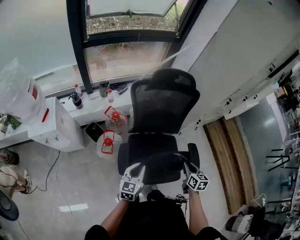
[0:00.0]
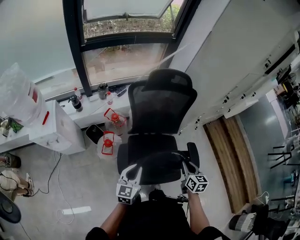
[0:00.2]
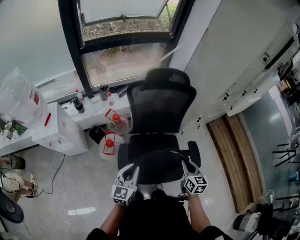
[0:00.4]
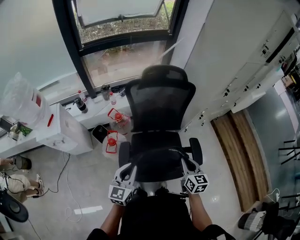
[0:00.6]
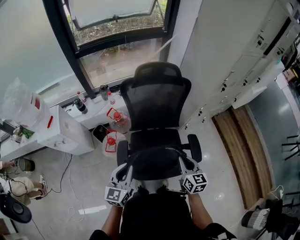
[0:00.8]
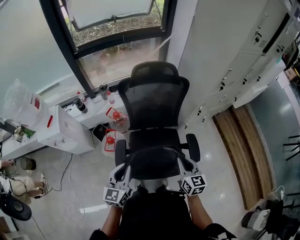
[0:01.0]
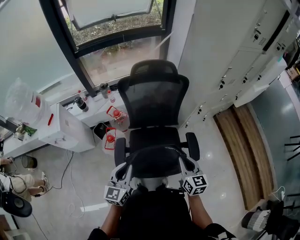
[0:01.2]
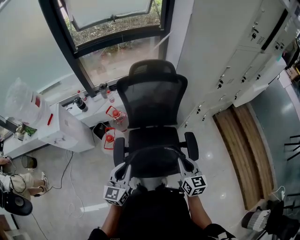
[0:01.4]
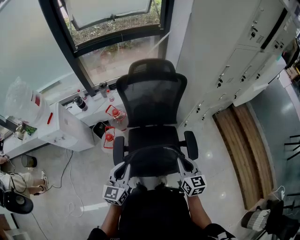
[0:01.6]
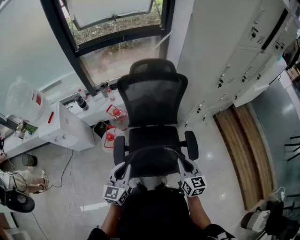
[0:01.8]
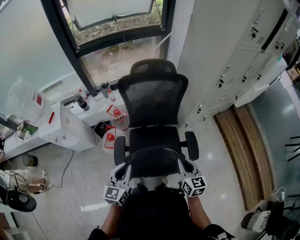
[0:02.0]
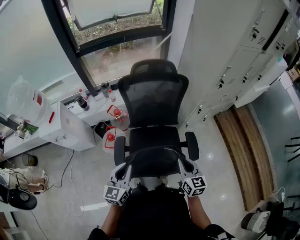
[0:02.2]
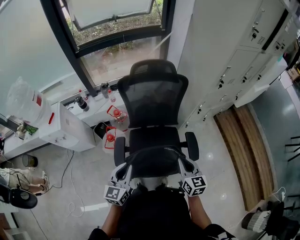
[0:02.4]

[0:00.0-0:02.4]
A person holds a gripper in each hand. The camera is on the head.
0:00.0 to 0:01.2: The grippers both shift upward by about 10 cm.
0:01.2 to 0:02.4: The grippers stay close to where they were, moving slightly.

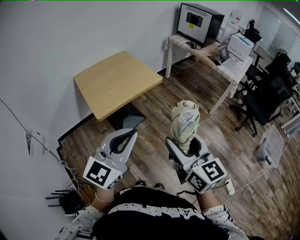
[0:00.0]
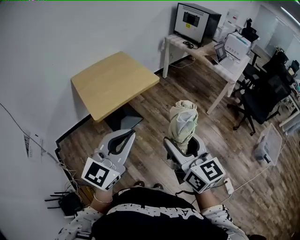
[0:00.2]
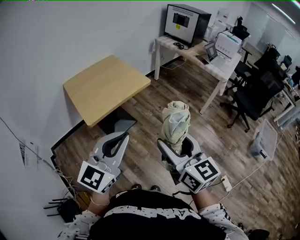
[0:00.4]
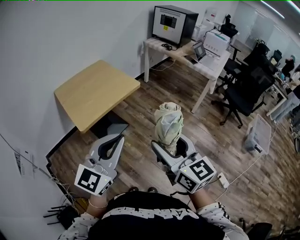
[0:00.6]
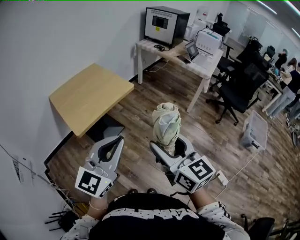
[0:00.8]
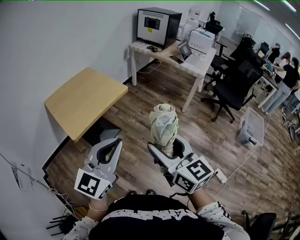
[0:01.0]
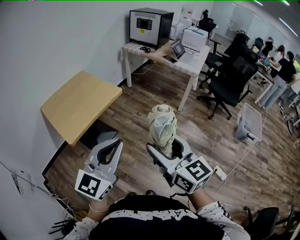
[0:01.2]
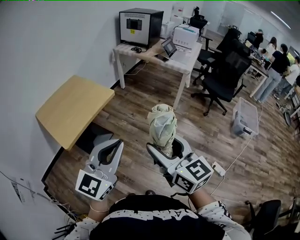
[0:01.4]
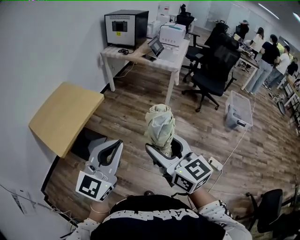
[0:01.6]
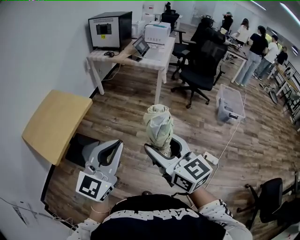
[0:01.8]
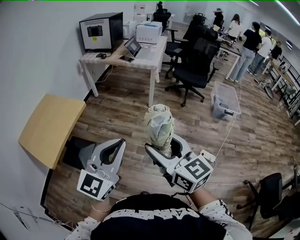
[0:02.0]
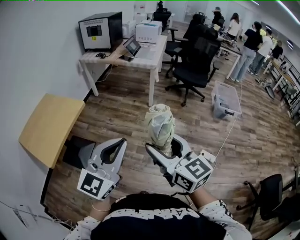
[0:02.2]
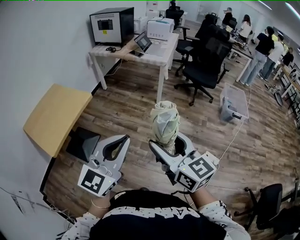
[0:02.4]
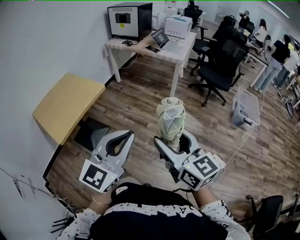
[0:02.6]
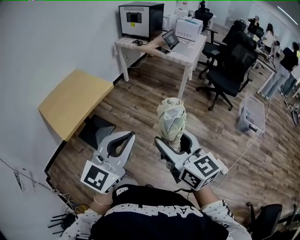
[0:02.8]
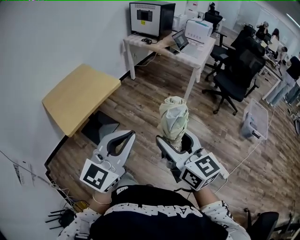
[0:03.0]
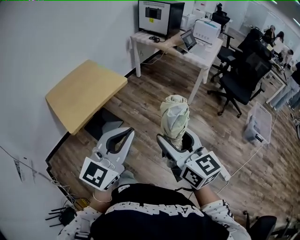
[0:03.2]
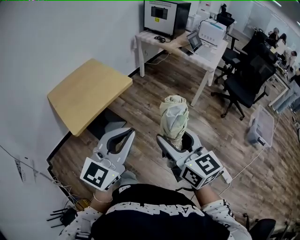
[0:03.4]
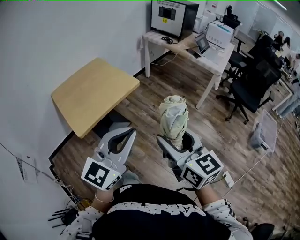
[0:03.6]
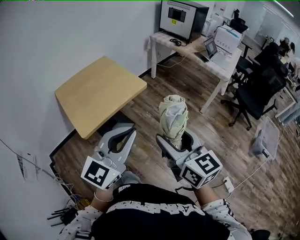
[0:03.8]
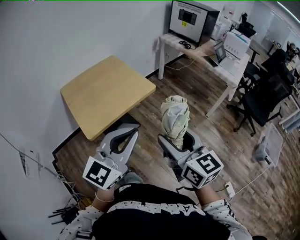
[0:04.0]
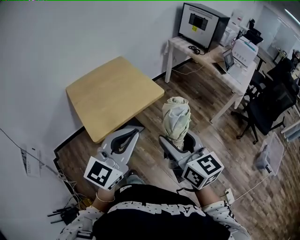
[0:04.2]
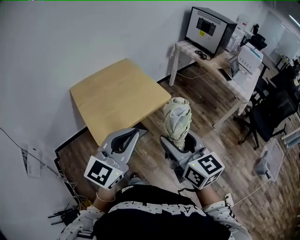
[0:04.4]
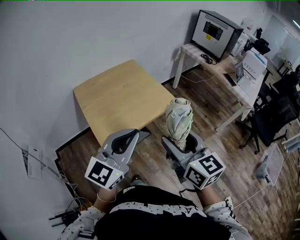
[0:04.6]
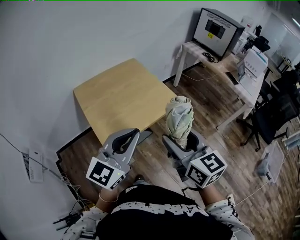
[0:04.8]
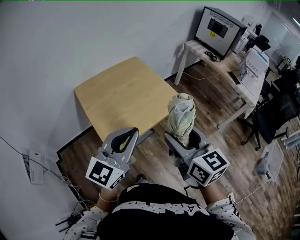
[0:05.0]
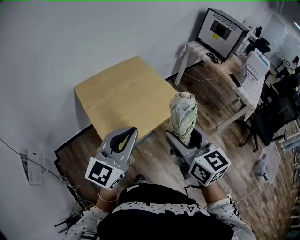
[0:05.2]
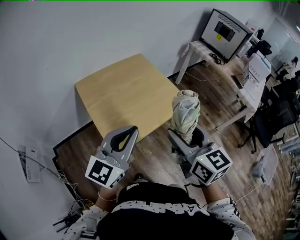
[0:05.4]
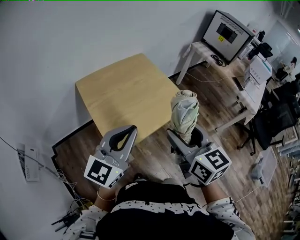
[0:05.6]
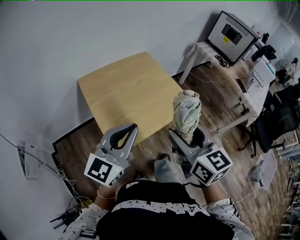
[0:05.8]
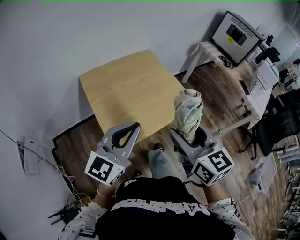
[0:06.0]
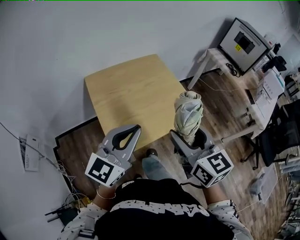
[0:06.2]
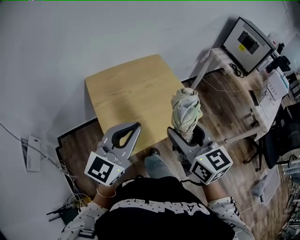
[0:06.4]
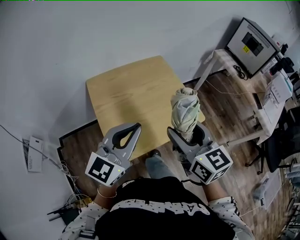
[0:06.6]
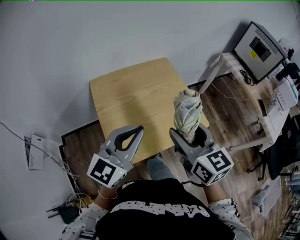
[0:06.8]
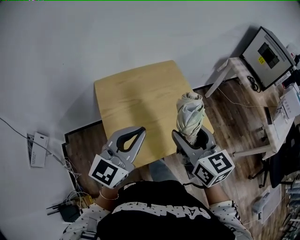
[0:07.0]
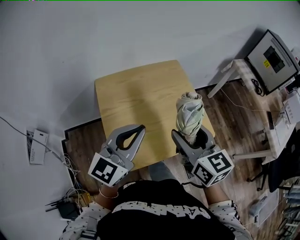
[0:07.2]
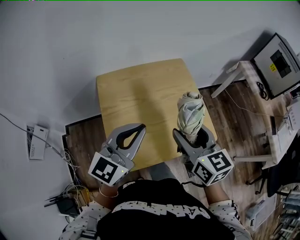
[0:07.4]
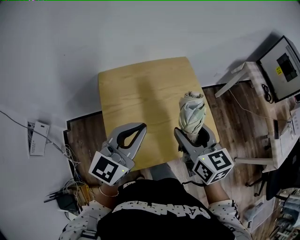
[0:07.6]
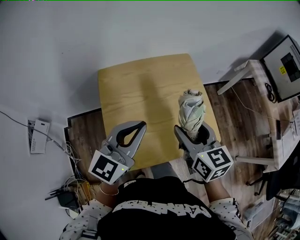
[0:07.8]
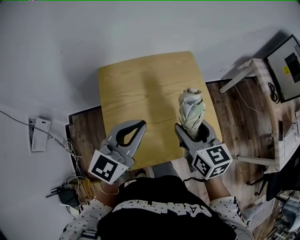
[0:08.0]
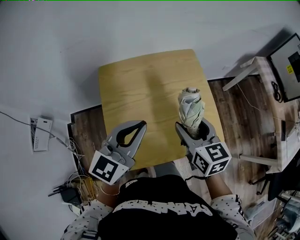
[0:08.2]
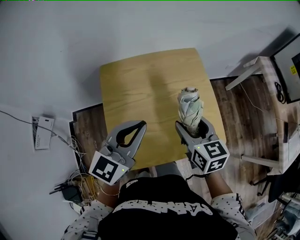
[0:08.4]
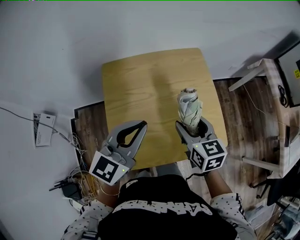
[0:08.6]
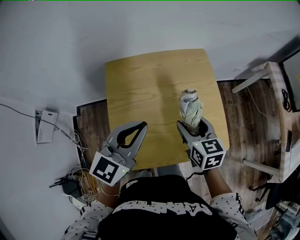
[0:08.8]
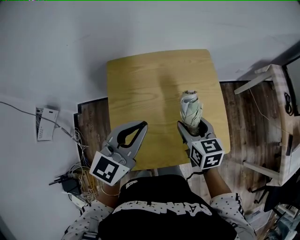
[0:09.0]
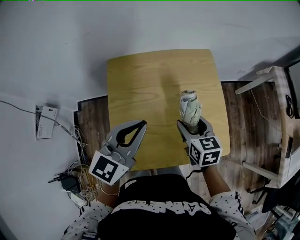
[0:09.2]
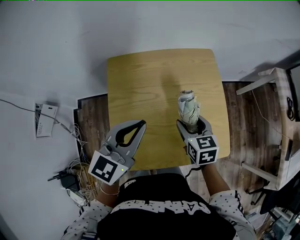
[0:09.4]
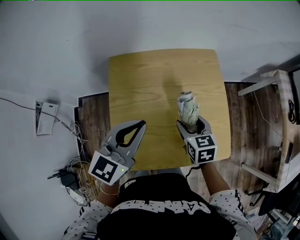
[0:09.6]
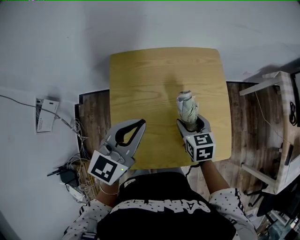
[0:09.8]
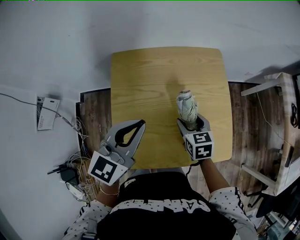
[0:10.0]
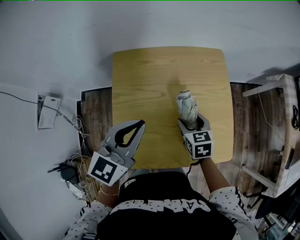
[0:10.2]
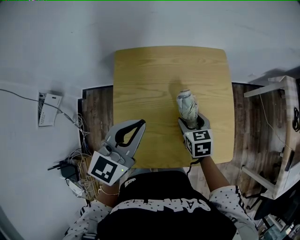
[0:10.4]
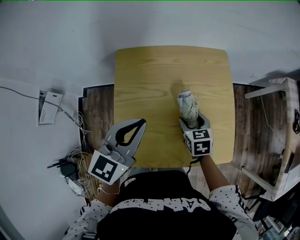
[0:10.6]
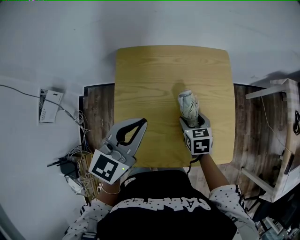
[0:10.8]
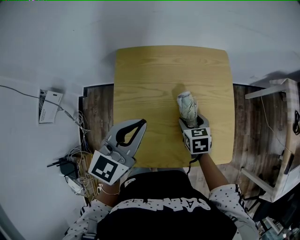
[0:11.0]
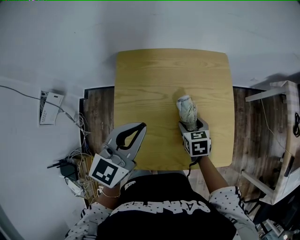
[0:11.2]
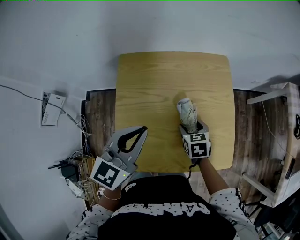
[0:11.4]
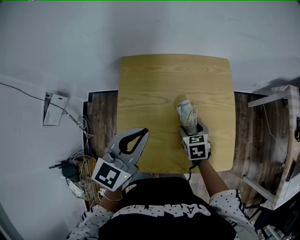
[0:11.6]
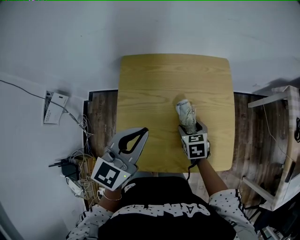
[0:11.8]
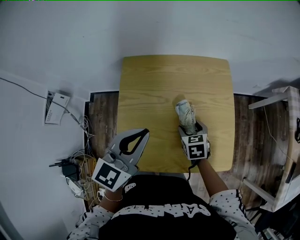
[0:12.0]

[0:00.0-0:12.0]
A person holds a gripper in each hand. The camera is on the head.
0:00.0 to 0:01.6: The two grippers go approximately 10 cm to the right.
0:01.6 to 0:03.0: The right gripper travels to the right and back again, roughly 10 cm each way.
0:03.0 to 0:04.4: The grippers both shift to the left and forward by approximately 30 cm.
0:04.4 to 0:06.0: Both grippers travel together to the left and forward, some 20 cm.
0:06.0 to 0:07.6: Both grippers travel together forward, about 20 cm.
0:07.6 to 0:09.0: The right gripper moves downward and forward, some 15 cm, while the left gripper moves about 5 cm.
0:09.0 to 0:10.4: The right gripper moves downward, some 10 cm.
0:10.4 to 0:12.0: The grippers make only small movements.

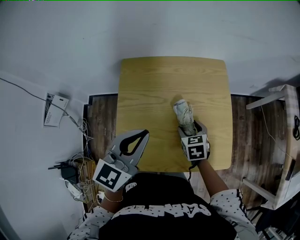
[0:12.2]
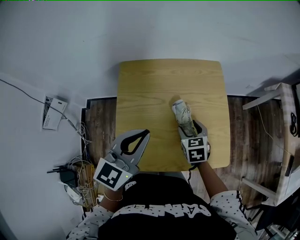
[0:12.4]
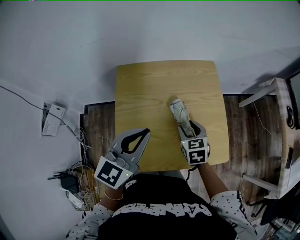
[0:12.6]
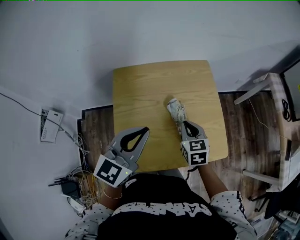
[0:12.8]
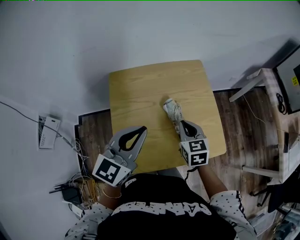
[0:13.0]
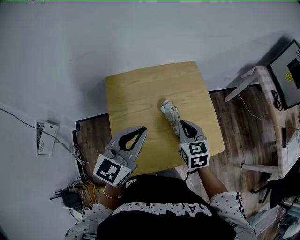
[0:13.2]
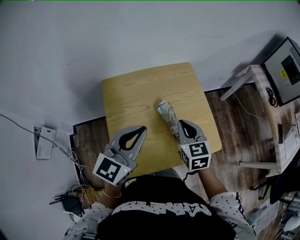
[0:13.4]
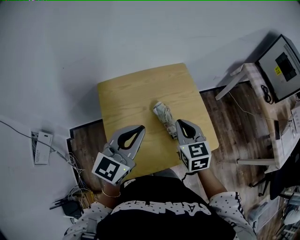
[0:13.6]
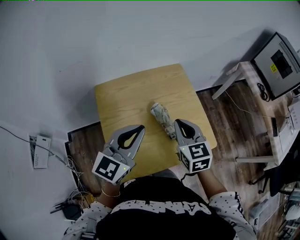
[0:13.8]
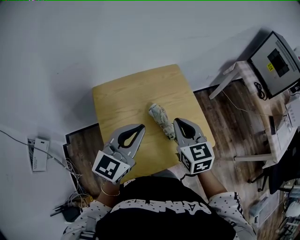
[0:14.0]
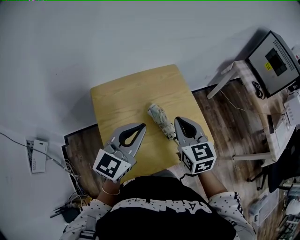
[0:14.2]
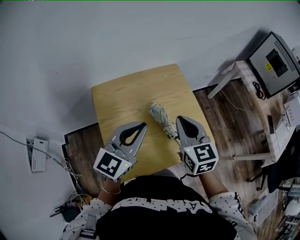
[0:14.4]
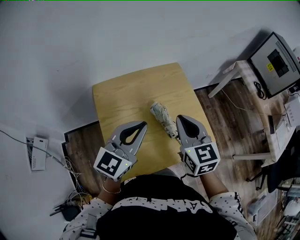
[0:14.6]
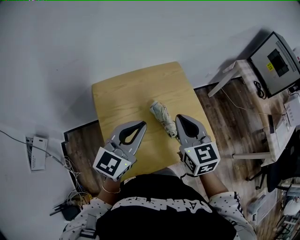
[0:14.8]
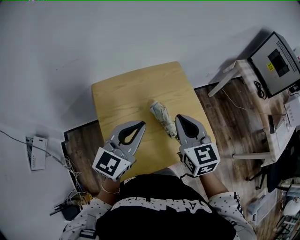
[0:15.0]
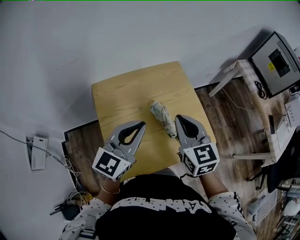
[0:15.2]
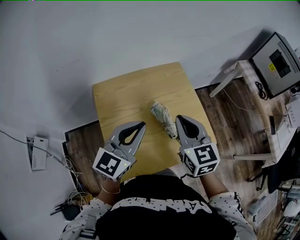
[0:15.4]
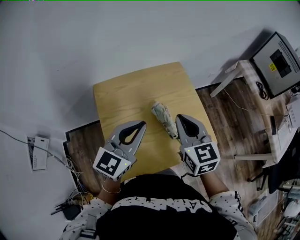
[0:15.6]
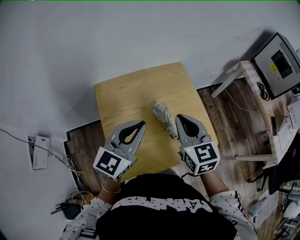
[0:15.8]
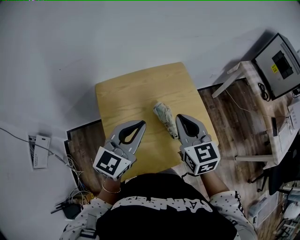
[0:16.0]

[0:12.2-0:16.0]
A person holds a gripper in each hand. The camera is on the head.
0:12.2 to 0:13.4: The right gripper is displaced upward by about 15 cm, swivels about 30 degrees, and closes its fingers.
0:13.4 to 0:14.8: The right gripper shifts some 10 cm upward.
0:14.8 to 0:16.0: The grippers make only small movements.

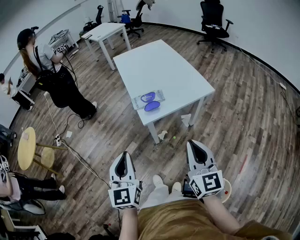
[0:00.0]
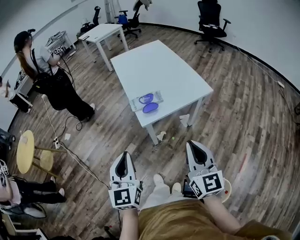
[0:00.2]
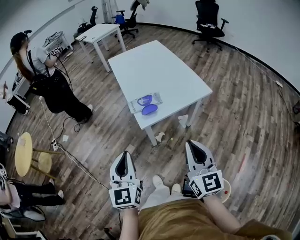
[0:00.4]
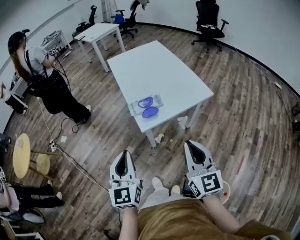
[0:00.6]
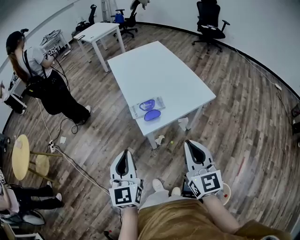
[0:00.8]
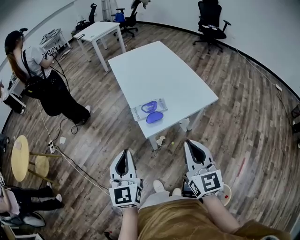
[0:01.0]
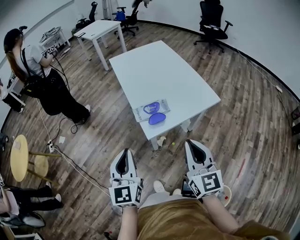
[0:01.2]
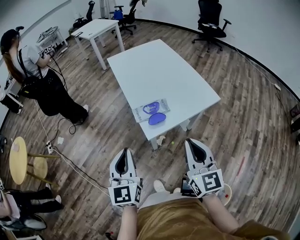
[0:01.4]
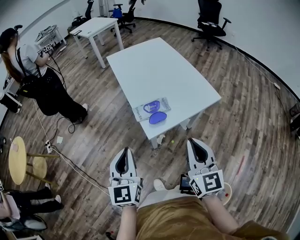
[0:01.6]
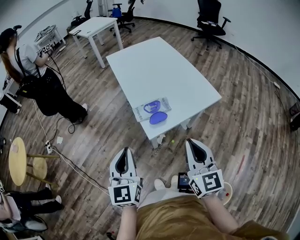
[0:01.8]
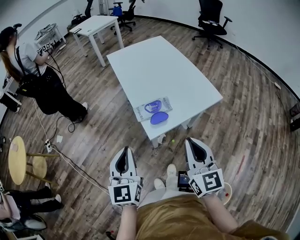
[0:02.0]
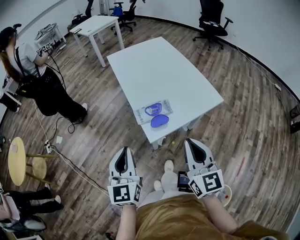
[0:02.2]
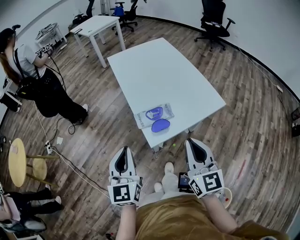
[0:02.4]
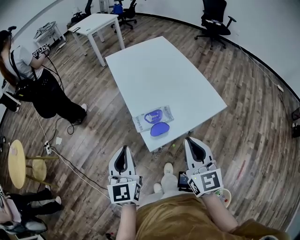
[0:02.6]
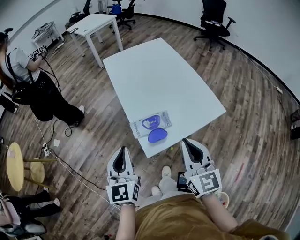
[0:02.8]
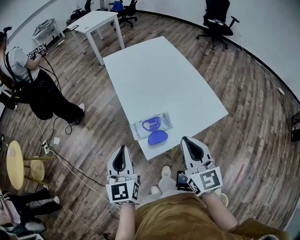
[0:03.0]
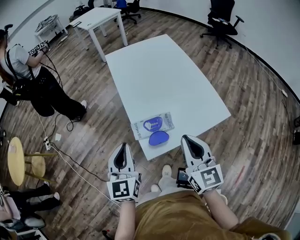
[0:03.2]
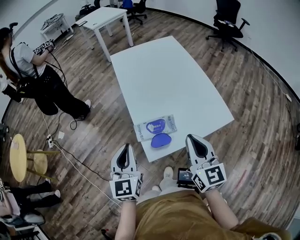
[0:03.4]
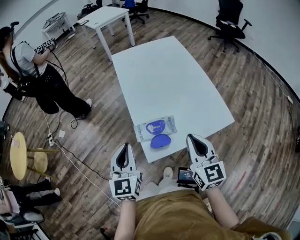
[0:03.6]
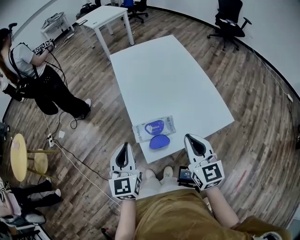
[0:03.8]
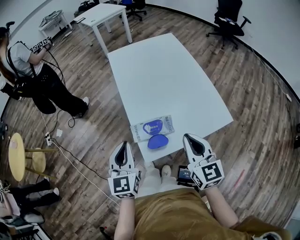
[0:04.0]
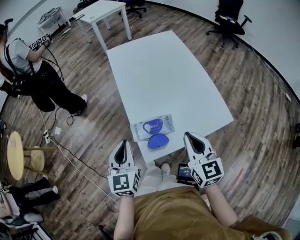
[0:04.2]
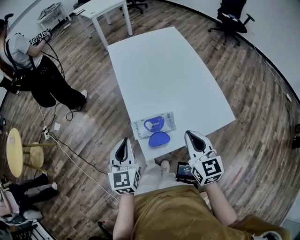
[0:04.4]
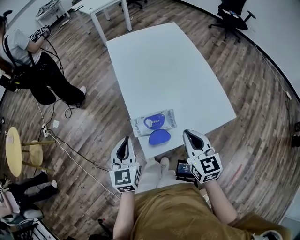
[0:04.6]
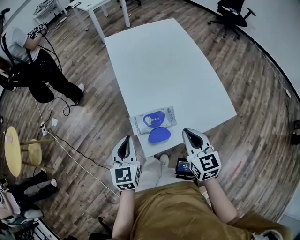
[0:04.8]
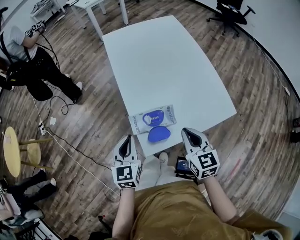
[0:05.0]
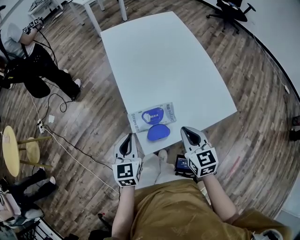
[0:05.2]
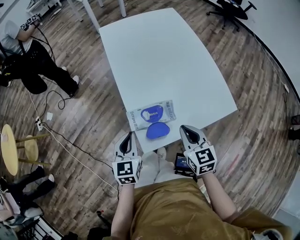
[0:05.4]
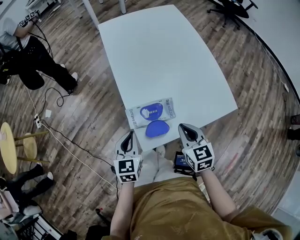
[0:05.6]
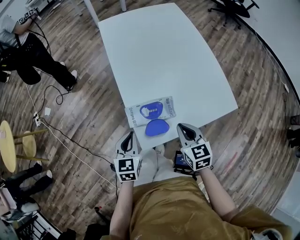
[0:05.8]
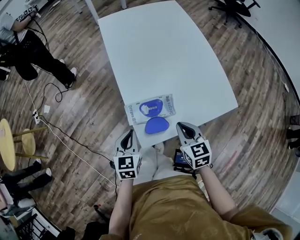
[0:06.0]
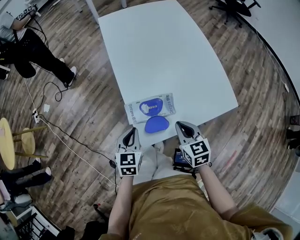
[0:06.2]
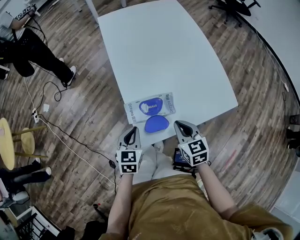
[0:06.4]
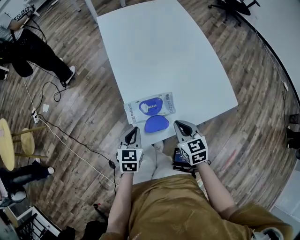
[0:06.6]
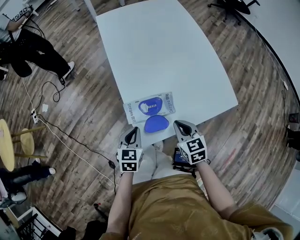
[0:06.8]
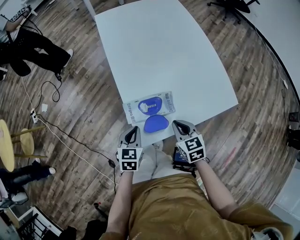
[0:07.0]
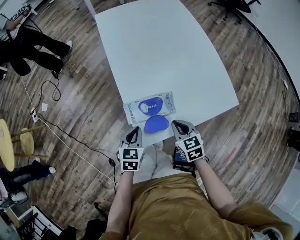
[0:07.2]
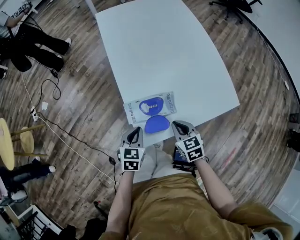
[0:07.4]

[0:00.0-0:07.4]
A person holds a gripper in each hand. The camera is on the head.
0:00.0 to 0:01.4: The left gripper is displaced forward by roughly 15 cm, while the right gripper goes some 15 cm forward and to the left.
0:01.4 to 0:03.0: The grippers both shift forward by approximately 15 cm.
0:03.0 to 0:04.4: The grippers both shift downward and forward by about 10 cm.
0:04.4 to 0:06.0: The two grippers go approximately 15 cm downward.
0:06.0 to 0:07.4: The two grippers go roughly 5 cm downward.
